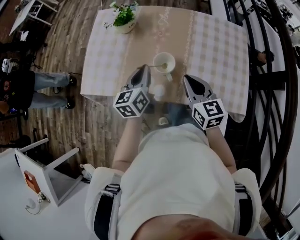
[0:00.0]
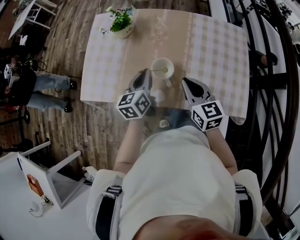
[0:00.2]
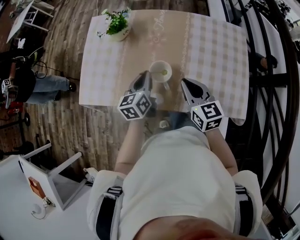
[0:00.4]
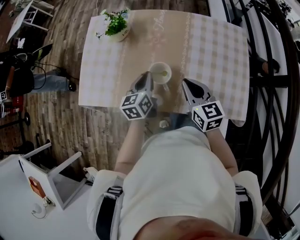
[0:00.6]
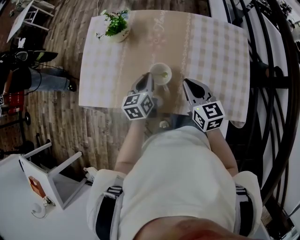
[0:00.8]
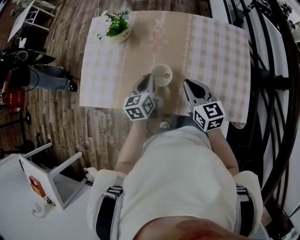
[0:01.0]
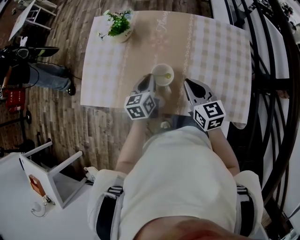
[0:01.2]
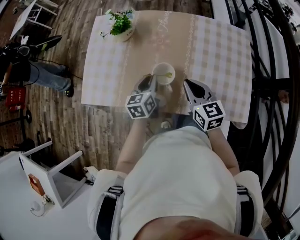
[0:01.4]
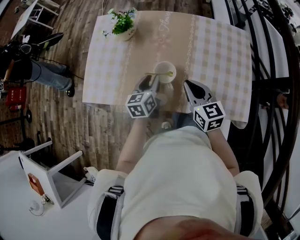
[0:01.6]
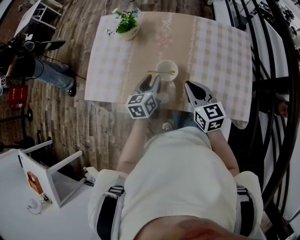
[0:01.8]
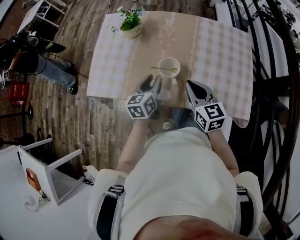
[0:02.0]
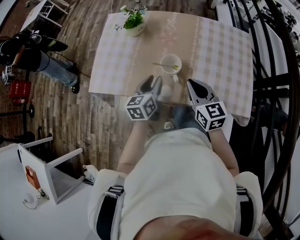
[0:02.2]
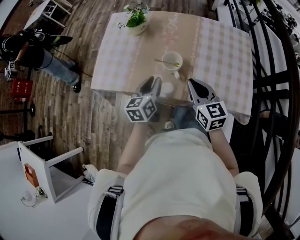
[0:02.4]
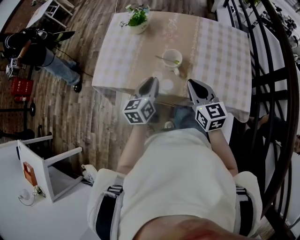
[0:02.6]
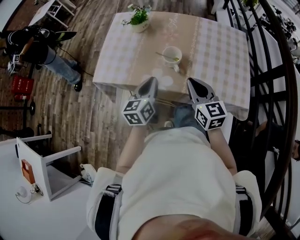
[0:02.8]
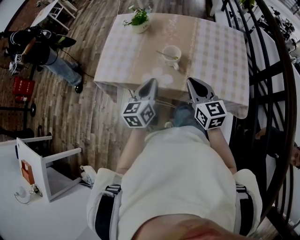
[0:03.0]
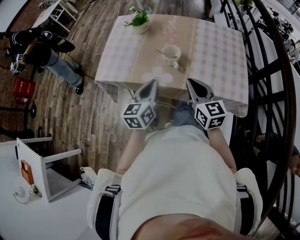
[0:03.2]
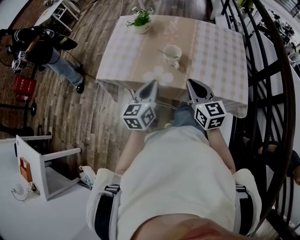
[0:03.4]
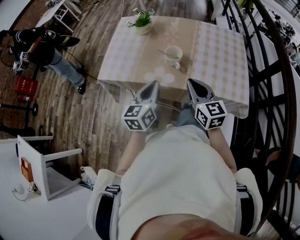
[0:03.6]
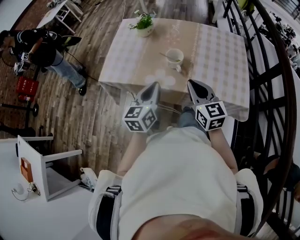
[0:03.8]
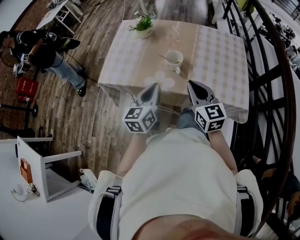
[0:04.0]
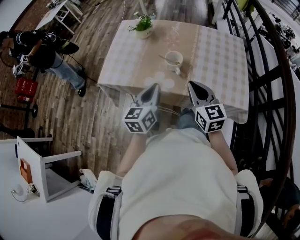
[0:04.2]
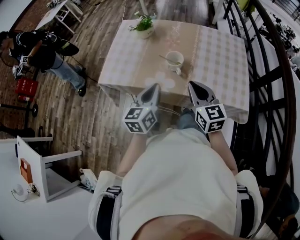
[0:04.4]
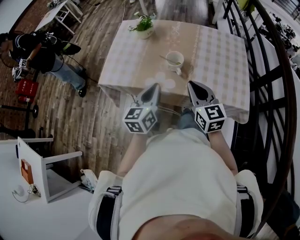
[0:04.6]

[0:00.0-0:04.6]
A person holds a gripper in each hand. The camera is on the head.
0:00.0 to 0:01.6: The left gripper shifts roughly 10 cm downward, and opens.
0:01.6 to 0:03.0: The grippers both shift backward and upward by some 15 cm. The left gripper closes up.
0:03.0 to 0:04.6: The grippers make only small movements.

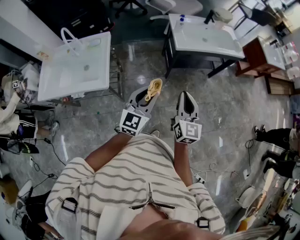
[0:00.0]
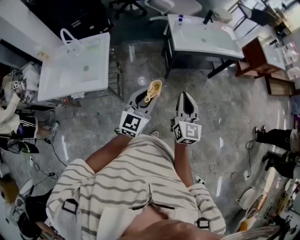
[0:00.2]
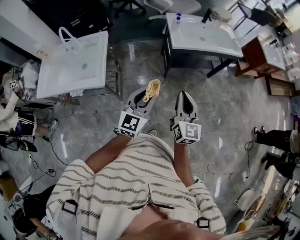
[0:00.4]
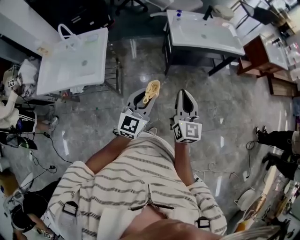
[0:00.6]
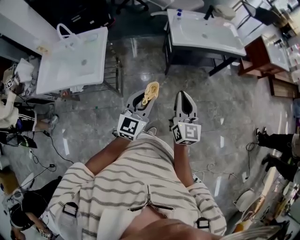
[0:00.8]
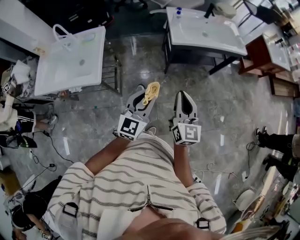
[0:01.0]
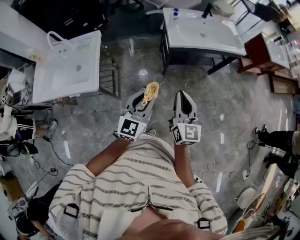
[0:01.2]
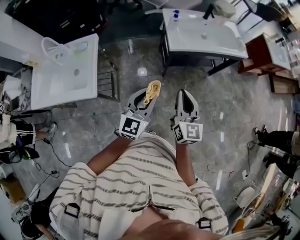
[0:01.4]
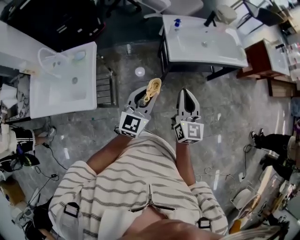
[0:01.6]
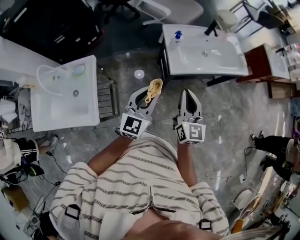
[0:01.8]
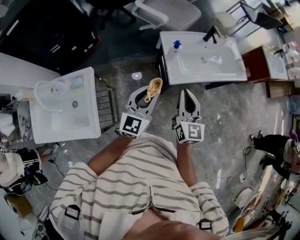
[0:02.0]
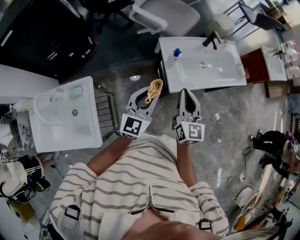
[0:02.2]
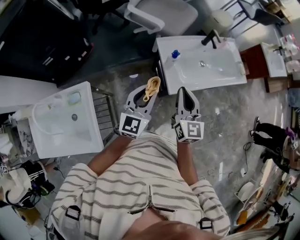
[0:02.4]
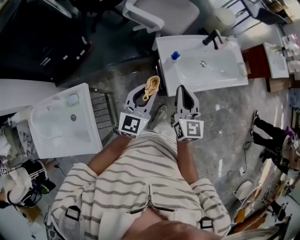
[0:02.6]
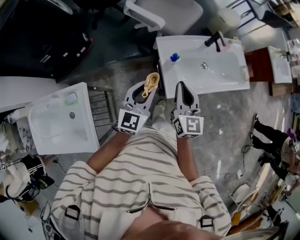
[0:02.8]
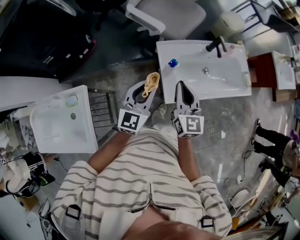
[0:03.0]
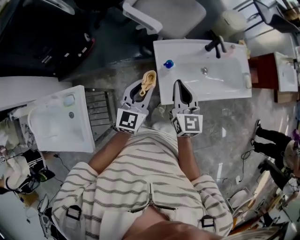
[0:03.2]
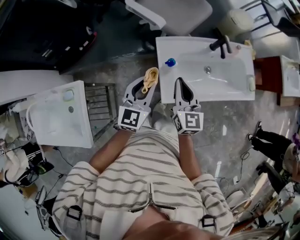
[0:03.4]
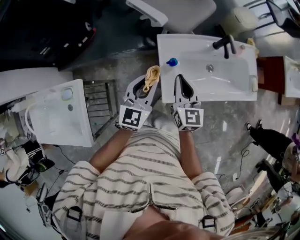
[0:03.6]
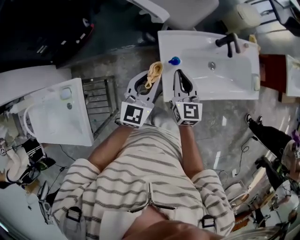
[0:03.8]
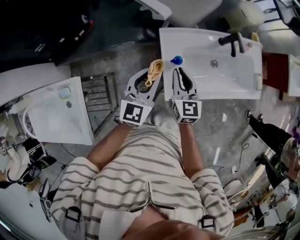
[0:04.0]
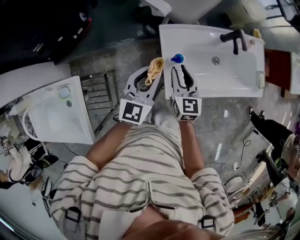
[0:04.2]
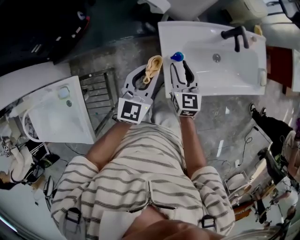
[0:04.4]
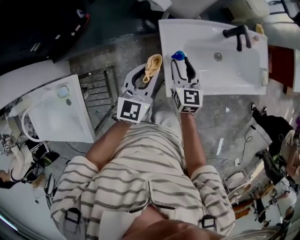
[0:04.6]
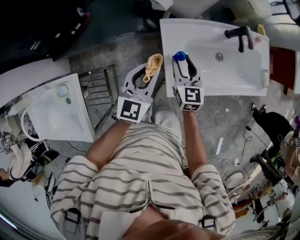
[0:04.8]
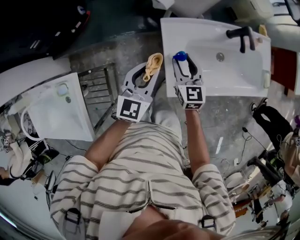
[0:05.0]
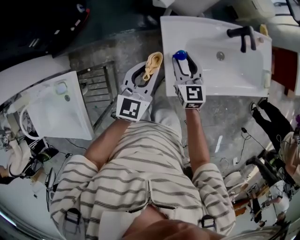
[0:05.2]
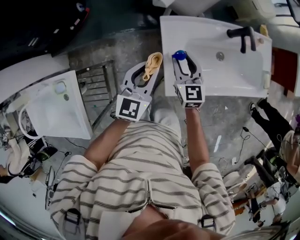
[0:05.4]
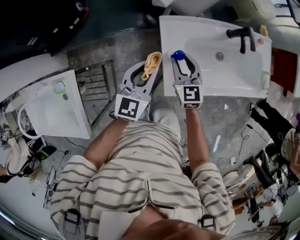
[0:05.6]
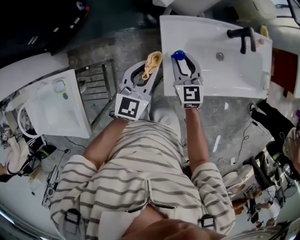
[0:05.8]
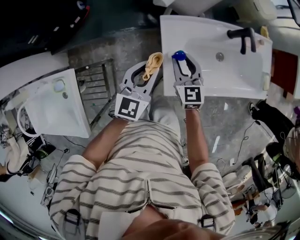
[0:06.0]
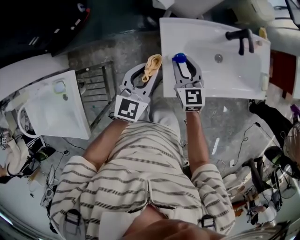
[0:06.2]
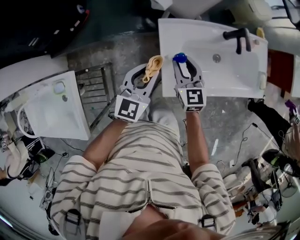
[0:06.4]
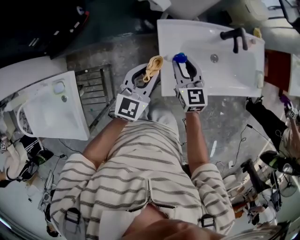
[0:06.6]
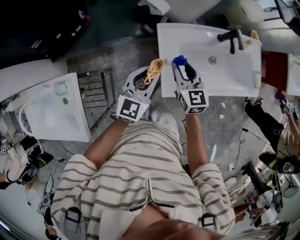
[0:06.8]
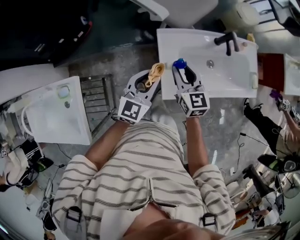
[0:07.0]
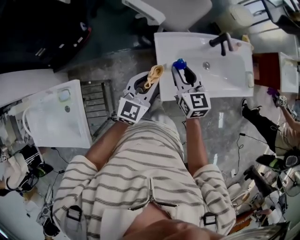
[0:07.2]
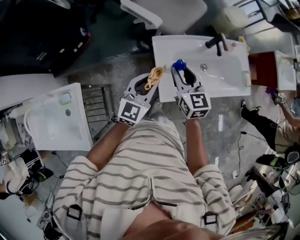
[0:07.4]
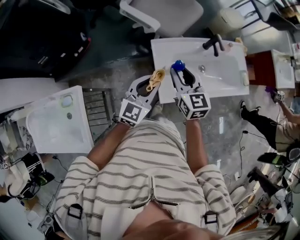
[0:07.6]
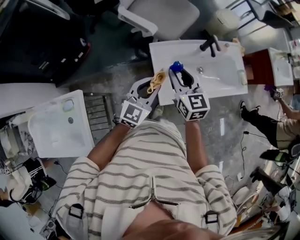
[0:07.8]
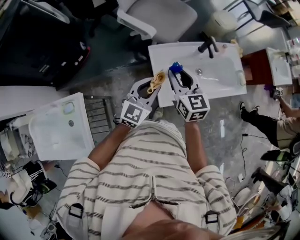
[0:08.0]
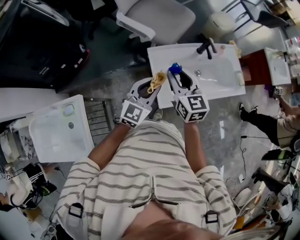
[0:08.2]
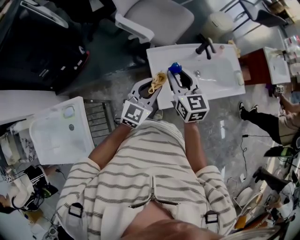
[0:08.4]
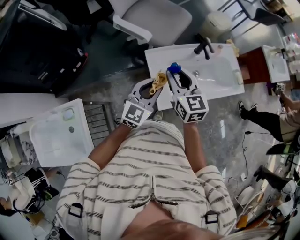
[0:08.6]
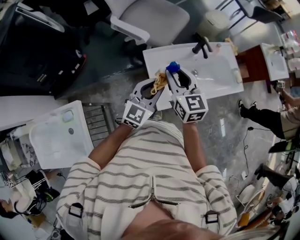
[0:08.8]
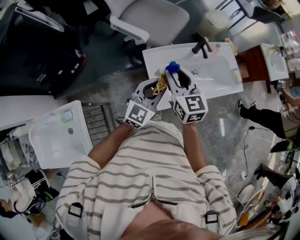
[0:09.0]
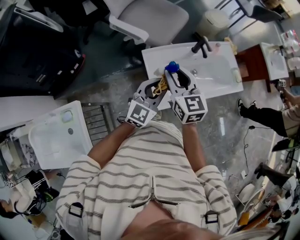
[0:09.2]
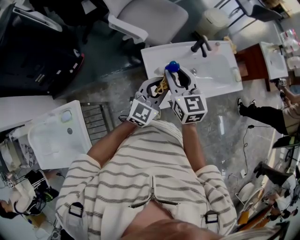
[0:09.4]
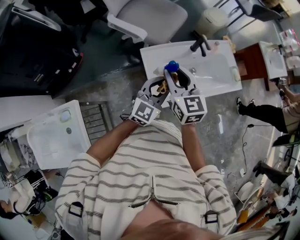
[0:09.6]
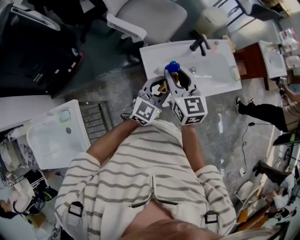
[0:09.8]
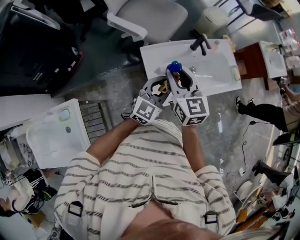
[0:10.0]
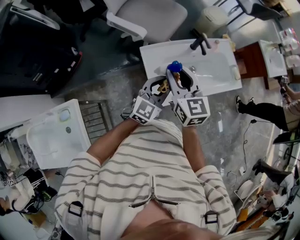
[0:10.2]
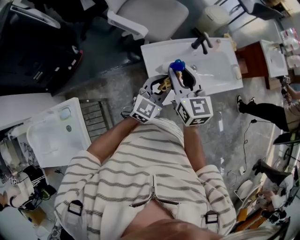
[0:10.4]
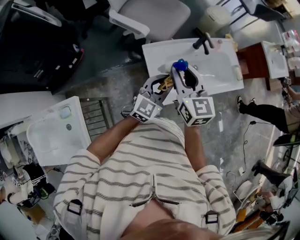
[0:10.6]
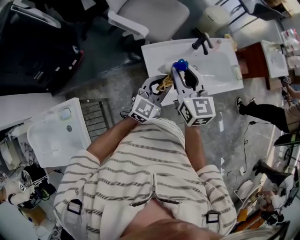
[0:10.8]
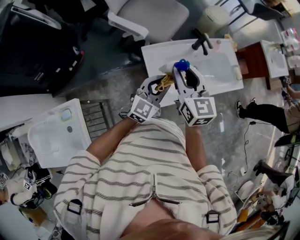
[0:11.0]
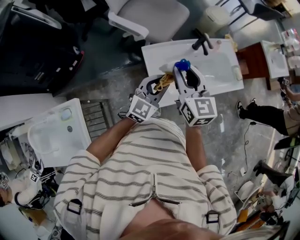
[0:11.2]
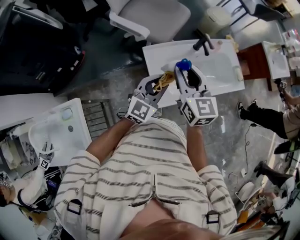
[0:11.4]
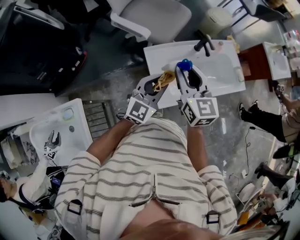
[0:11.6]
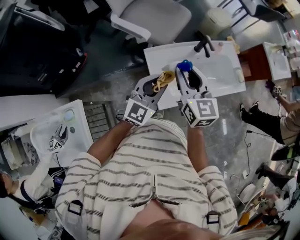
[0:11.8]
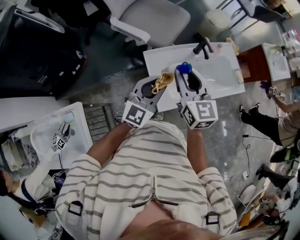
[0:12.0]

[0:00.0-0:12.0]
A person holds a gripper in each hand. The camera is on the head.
0:00.0 to 0:01.6: The two grippers go about 20 cm forward.
0:01.6 to 0:03.0: Both grippers move forward, some 35 cm.
0:03.0 to 0:04.4: The left gripper moves downward and forward, about 10 cm. The right gripper moves downward and forward, some 20 cm, and opens its fingers.
0:04.4 to 0:06.0: The grippers stay close to where they were, moving slightly.
0:06.0 to 0:07.6: The left gripper heads upward and backward, covering roughly 10 cm. The right gripper heads upward, covering roughly 15 cm.
0:07.6 to 0:09.0: The left gripper ends up about 5 cm from where it was. The right gripper goes approximately 5 cm upward.
0:09.0 to 0:10.4: There are only small adjustments of the grippers.
0:10.4 to 0:12.0: The left gripper ends up about 5 cm from where it was.

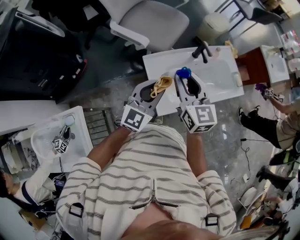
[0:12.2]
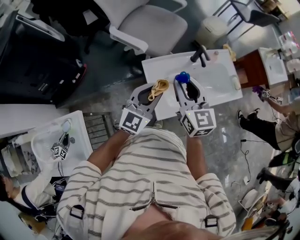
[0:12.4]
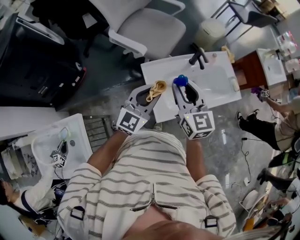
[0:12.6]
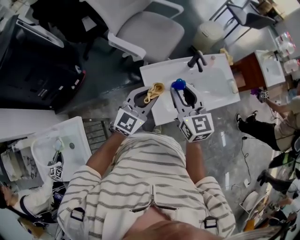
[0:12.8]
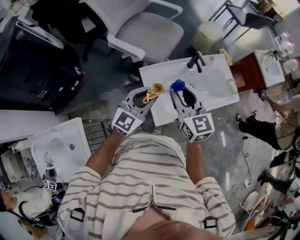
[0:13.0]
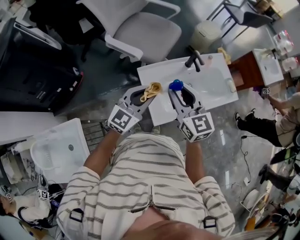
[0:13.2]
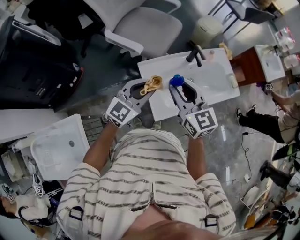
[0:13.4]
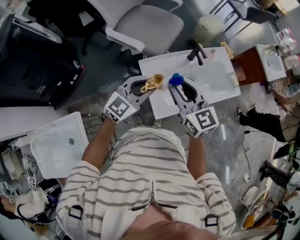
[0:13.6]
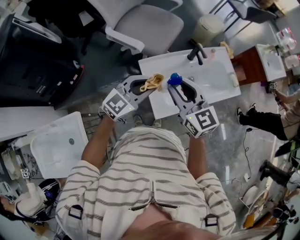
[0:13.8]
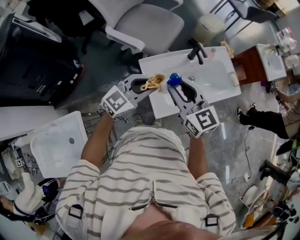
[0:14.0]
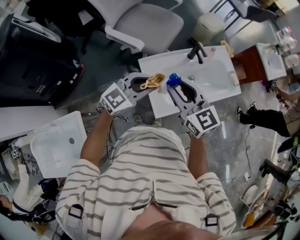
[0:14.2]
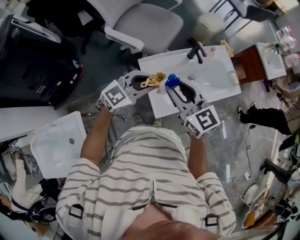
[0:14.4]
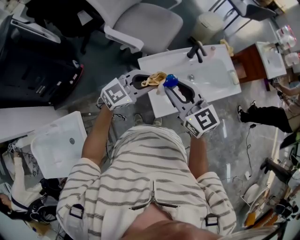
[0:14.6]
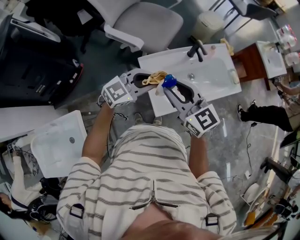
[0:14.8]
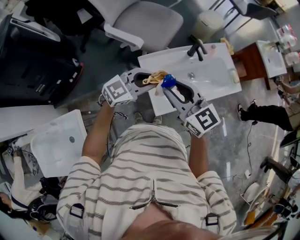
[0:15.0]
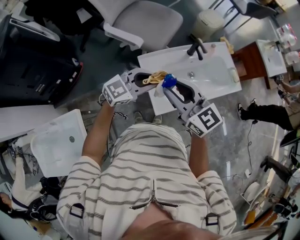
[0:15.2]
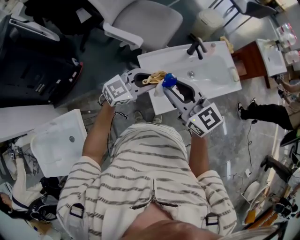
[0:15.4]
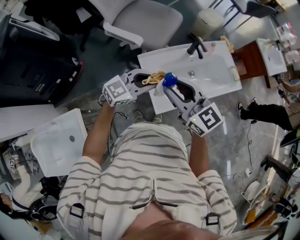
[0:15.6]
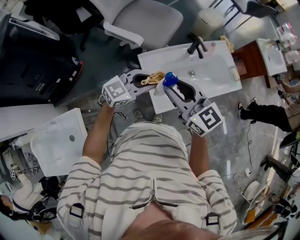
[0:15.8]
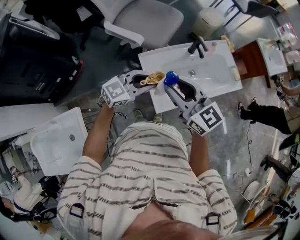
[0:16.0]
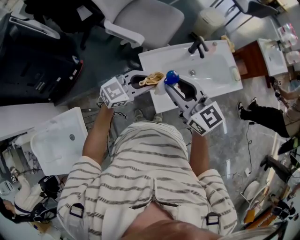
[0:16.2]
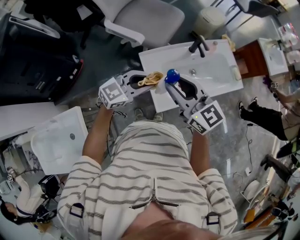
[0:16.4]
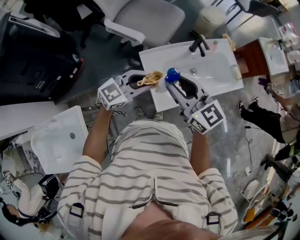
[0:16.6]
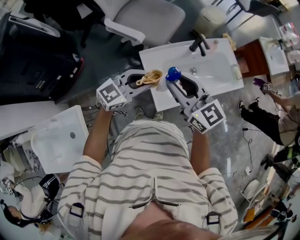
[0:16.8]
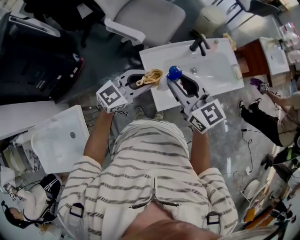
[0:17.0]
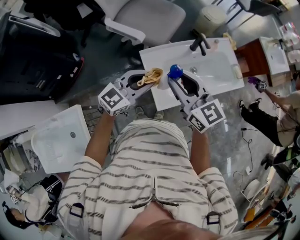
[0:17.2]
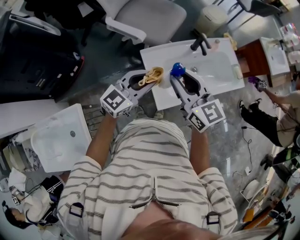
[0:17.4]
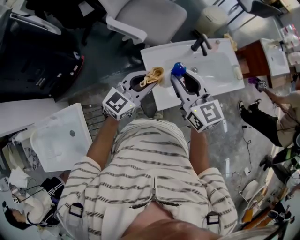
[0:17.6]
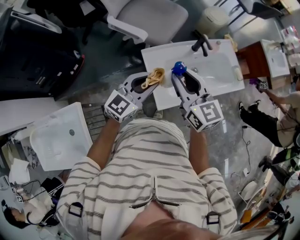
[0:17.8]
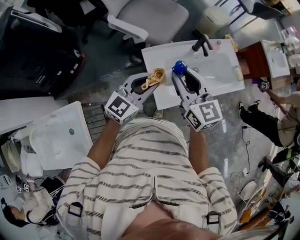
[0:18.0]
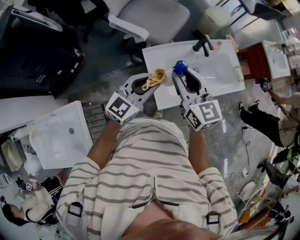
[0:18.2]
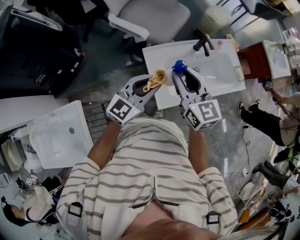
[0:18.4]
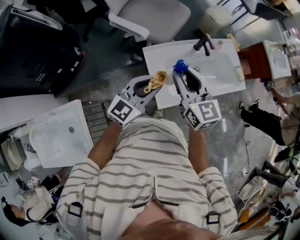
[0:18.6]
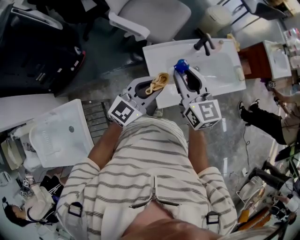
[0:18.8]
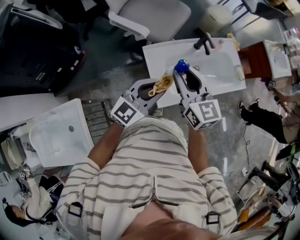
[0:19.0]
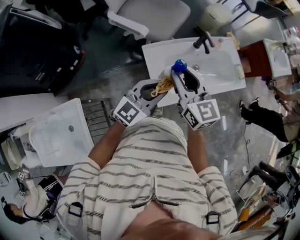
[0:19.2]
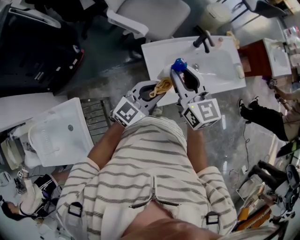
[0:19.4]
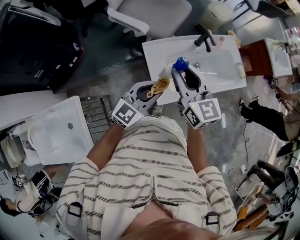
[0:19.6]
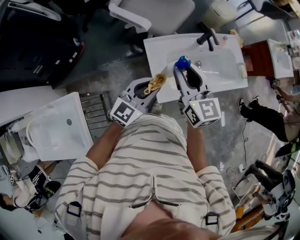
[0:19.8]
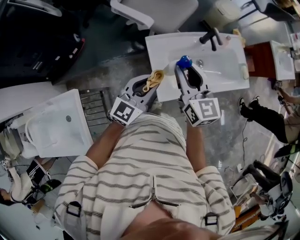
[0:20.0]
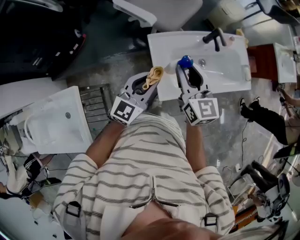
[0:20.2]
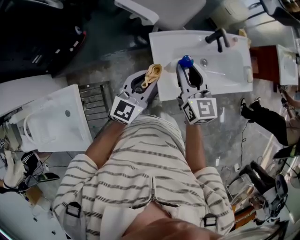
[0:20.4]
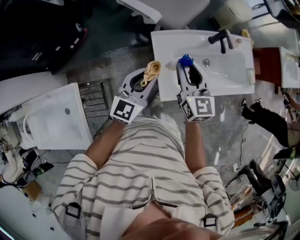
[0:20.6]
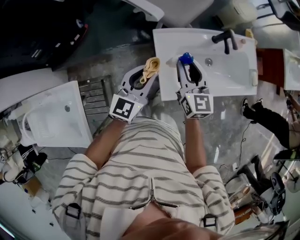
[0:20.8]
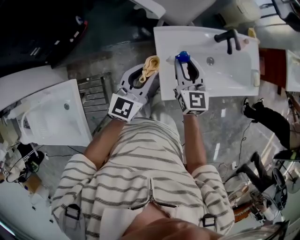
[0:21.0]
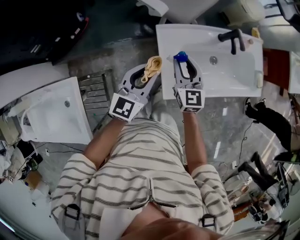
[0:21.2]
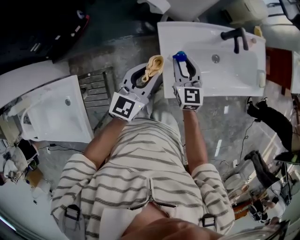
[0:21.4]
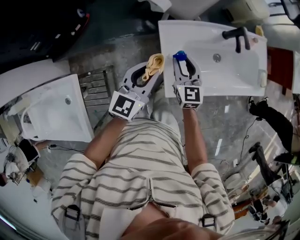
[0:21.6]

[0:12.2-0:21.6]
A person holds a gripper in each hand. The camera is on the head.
0:12.2 to 0:13.8: The left gripper rotates about 20 degrees.
0:13.8 to 0:18.4: The grippers make only small movements.
0:18.4 to 0:20.0: The left gripper is displaced downward by about 5 cm.
0:20.0 to 0:21.6: The left gripper is displaced downward by approximately 5 cm; the right gripper shifts about 20 cm downward.
